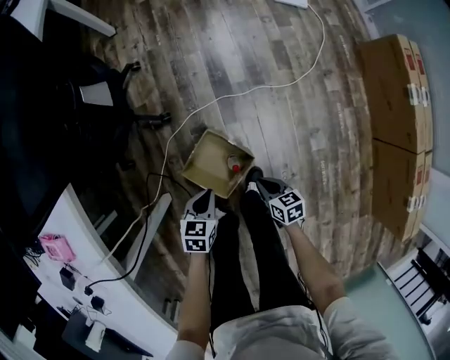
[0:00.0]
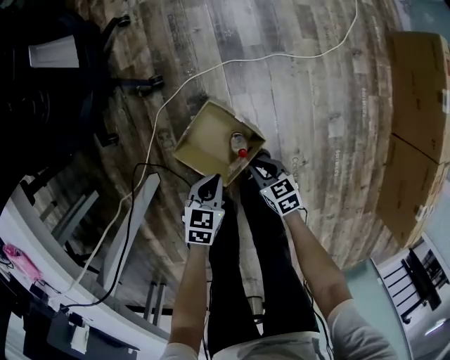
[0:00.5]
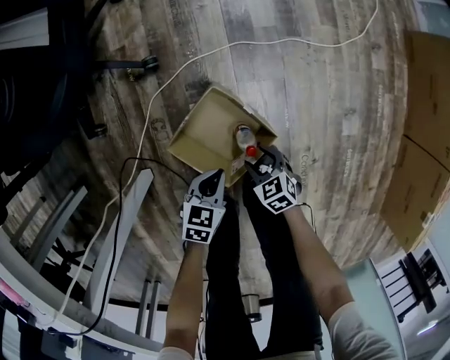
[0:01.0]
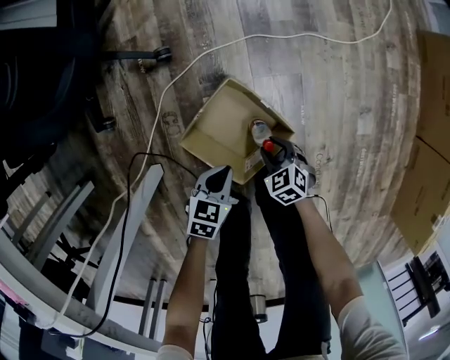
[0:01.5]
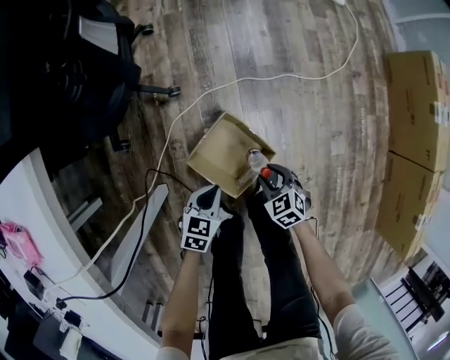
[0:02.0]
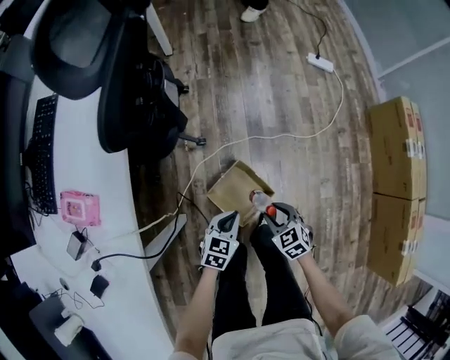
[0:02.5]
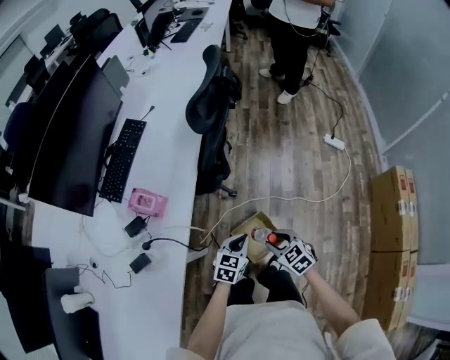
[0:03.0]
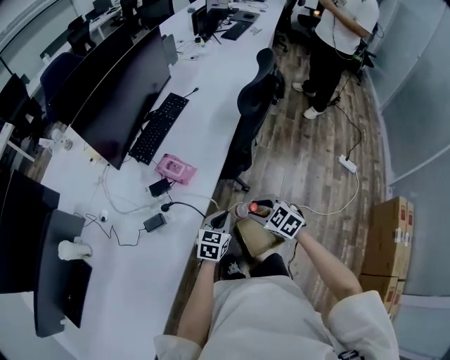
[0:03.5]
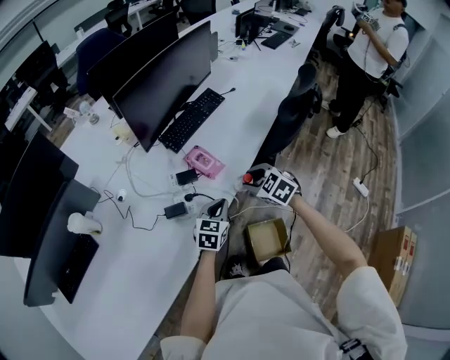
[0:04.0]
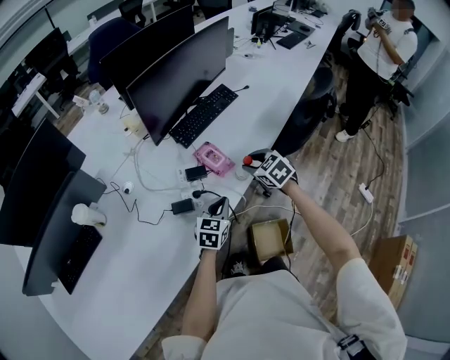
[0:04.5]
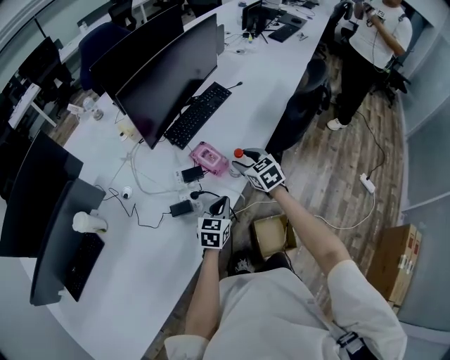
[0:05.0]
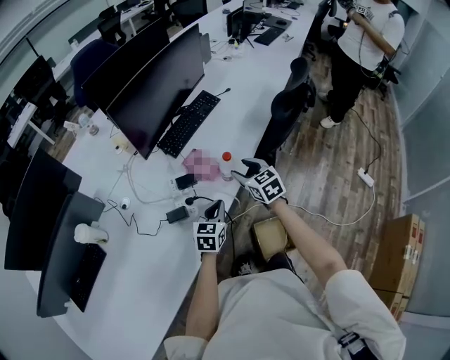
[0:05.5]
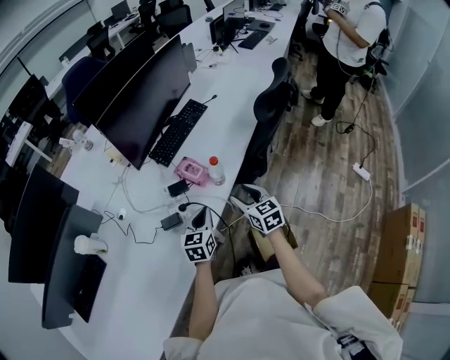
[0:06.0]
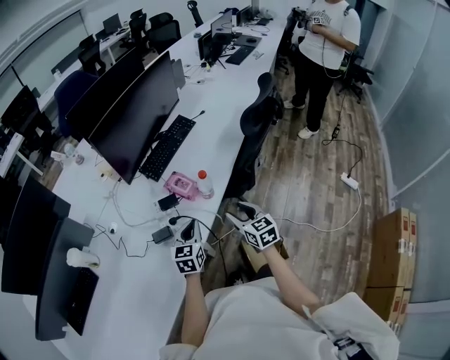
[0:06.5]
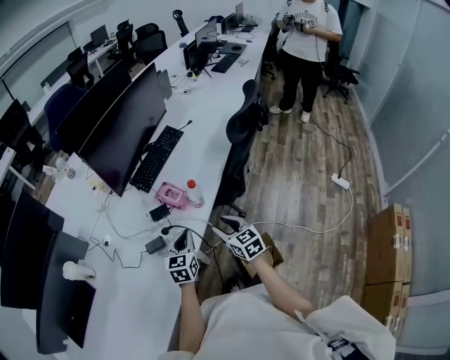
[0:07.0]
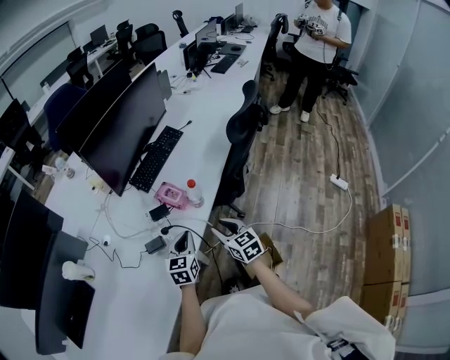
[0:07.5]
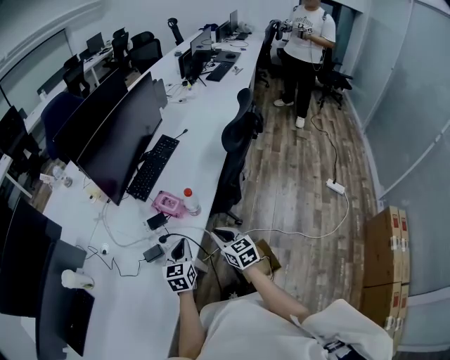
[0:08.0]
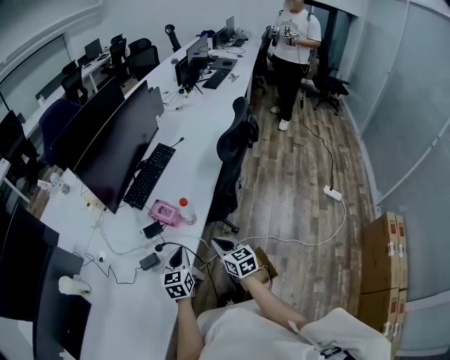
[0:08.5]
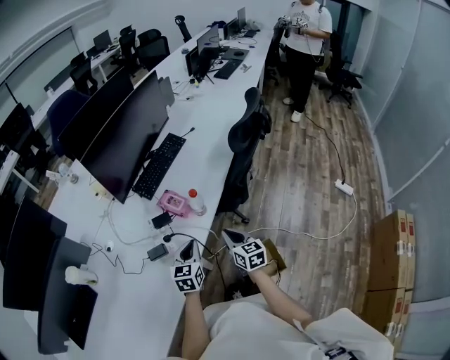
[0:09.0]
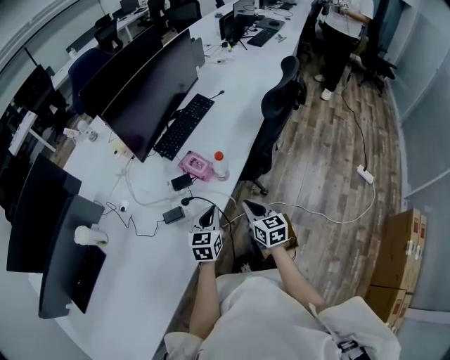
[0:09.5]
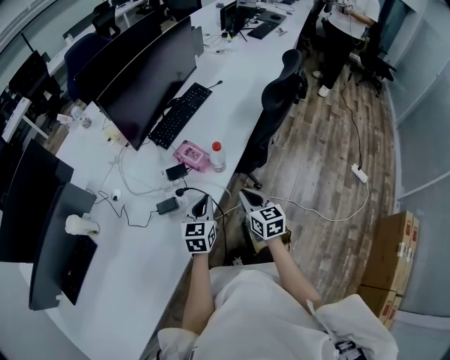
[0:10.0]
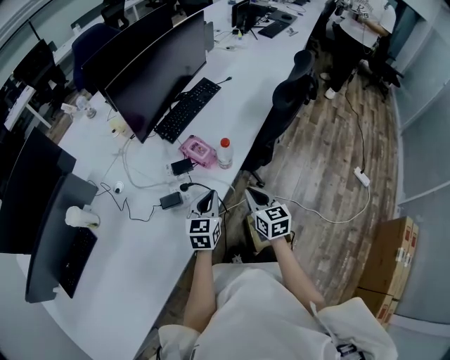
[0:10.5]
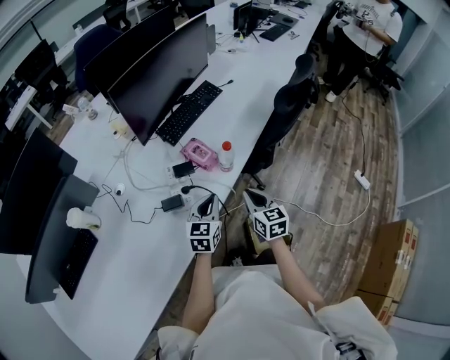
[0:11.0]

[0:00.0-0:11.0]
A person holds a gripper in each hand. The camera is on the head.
0:00.0 to 0:02.0: The left gripper travels downward, to the left and backward by about 15 cm; the right gripper shifts approximately 15 cm downward and to the left, rotates around the line of its fingers by some 40 degrees, counterclockwise from behind, and opens up.
0:02.0 to 0:03.5: The two grippers go roughly 50 cm upward. The right gripper changes its angle by about 50 degrees, while the left gripper rotates roughly 40 degrees.
0:03.5 to 0:05.5: The right gripper shifts roughly 20 cm forward and to the left, and changes its angle by about 20 degrees. The left gripper moves to the left and forward, approximately 15 cm.
0:05.5 to 0:07.5: The right gripper heads backward, covering about 15 cm.
0:07.5 to 0:09.0: The right gripper closes its fingers.
0:09.0 to 0:11.0: The grippers move only a little.

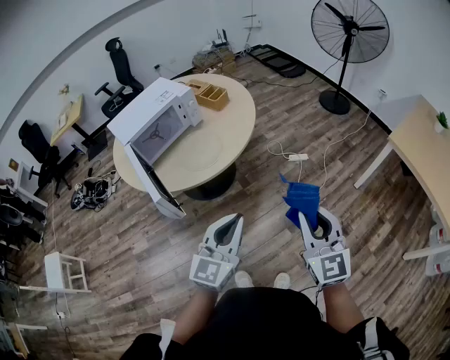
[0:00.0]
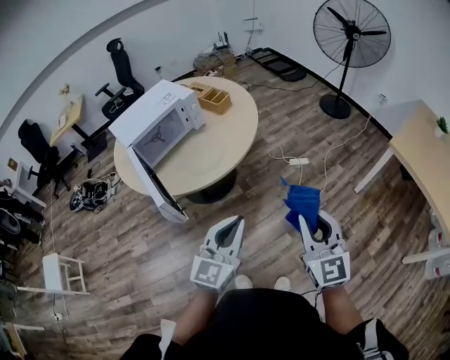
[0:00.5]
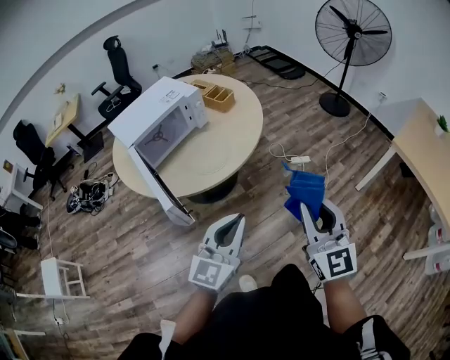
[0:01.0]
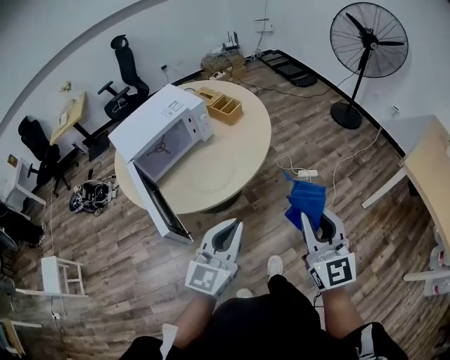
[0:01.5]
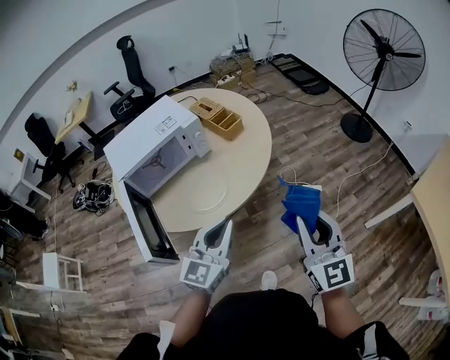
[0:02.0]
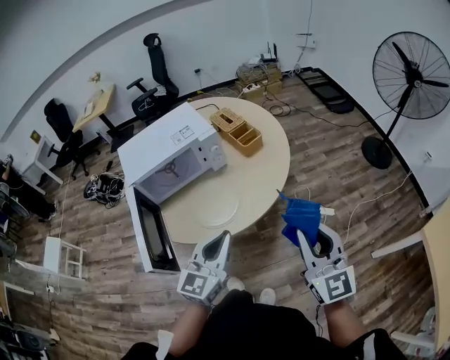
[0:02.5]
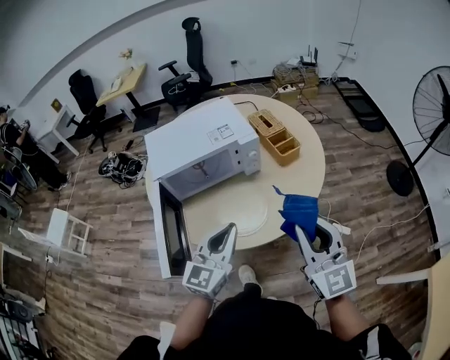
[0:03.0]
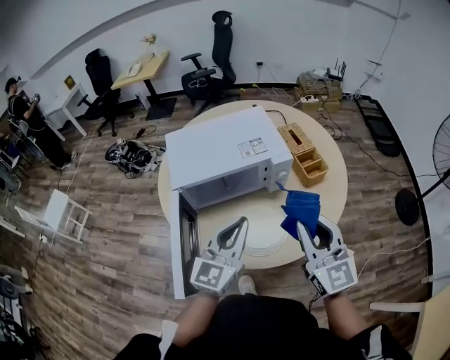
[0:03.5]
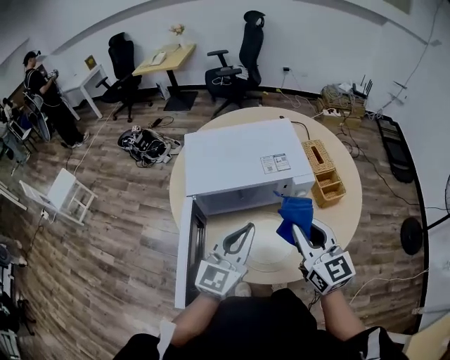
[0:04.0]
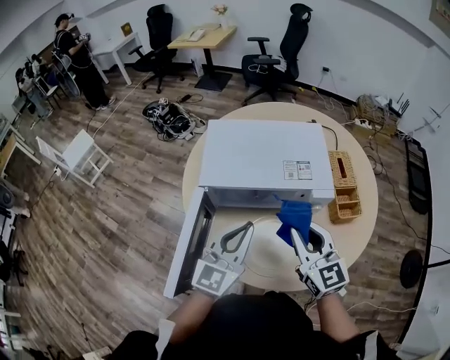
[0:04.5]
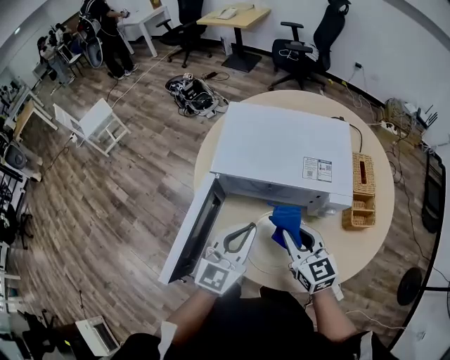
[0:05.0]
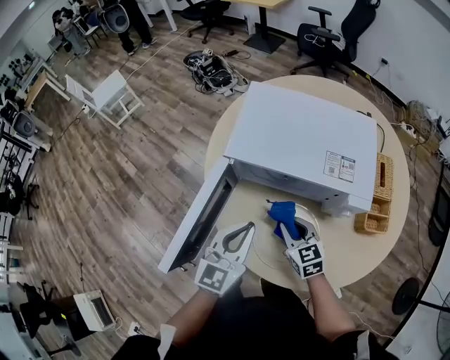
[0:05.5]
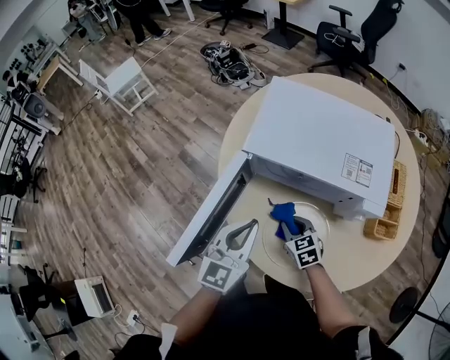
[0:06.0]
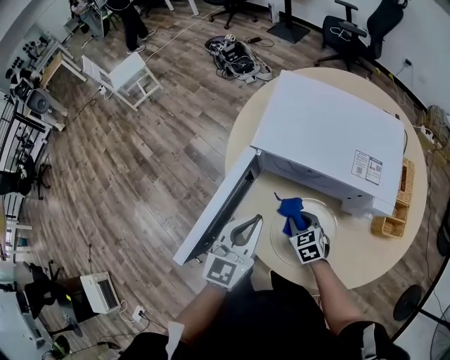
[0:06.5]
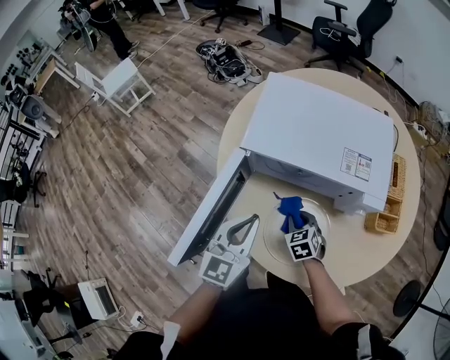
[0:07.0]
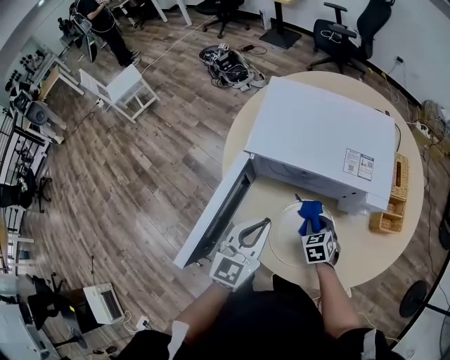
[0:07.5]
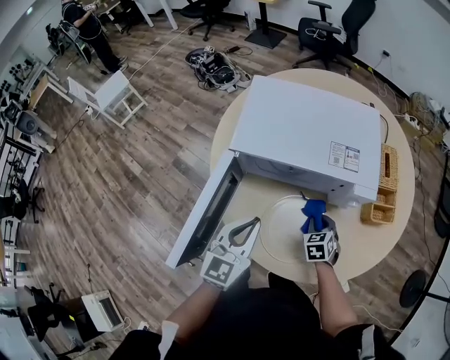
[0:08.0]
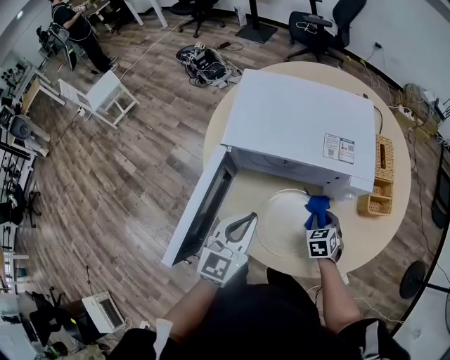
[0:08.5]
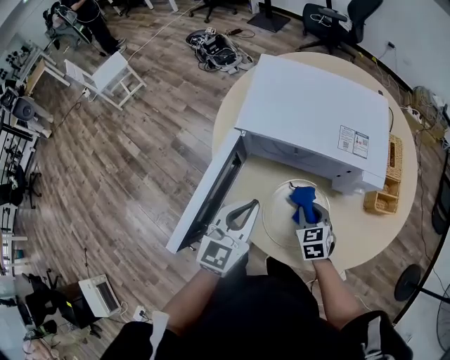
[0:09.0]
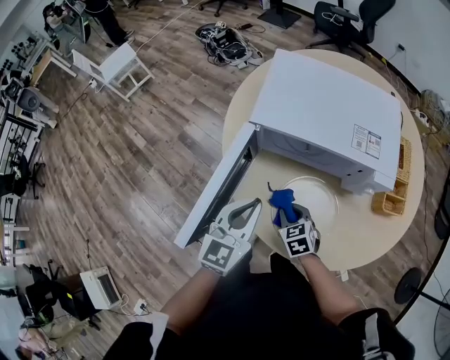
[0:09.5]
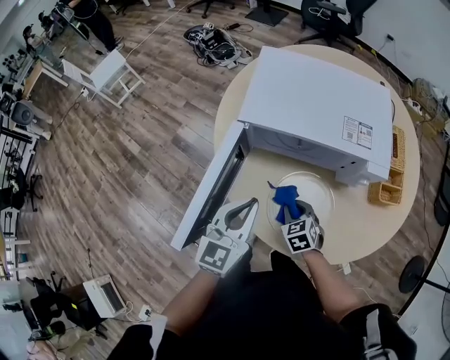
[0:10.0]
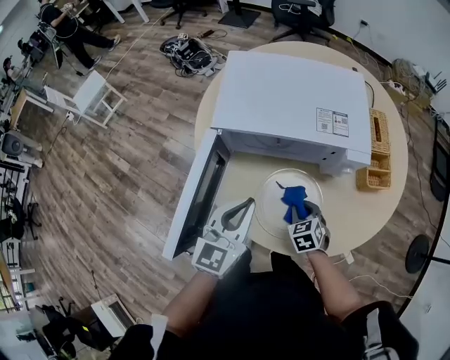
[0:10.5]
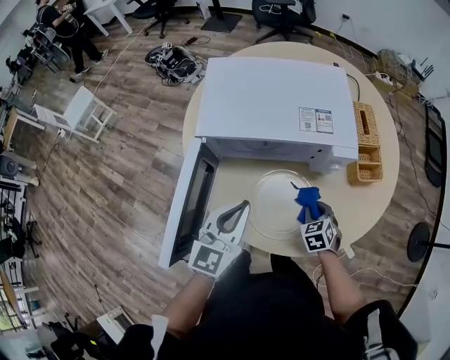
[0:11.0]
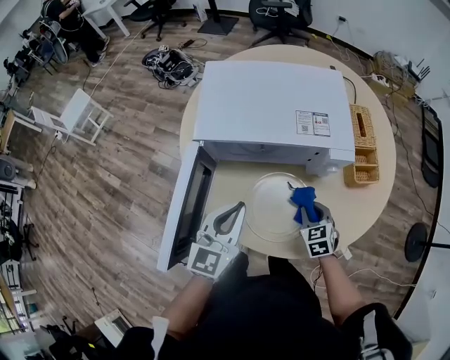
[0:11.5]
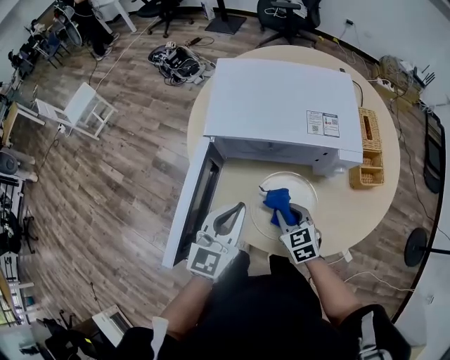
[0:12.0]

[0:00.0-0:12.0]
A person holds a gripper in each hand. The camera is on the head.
0:00.0 to 0:02.0: Both grippers travel together forward, some 25 cm.
0:02.0 to 0:04.0: The right gripper moves approximately 40 cm, and changes its angle by roughly 40 degrees; the left gripper ends up roughly 30 cm from where it was, and rotates some 30 degrees.
0:04.0 to 0:06.0: The right gripper travels downward by some 30 cm, and points its fingers roughly 40 degrees further downward; the left gripper moves downward, roughly 10 cm, and changes its angle by approximately 30 degrees.
0:06.0 to 0:08.0: The right gripper changes place by about 15 cm, and turns by roughly 30 degrees.
0:08.0 to 0:10.0: The right gripper is displaced to the left and backward by roughly 15 cm.
0:10.0 to 0:12.0: The right gripper moves upward, roughly 5 cm, and reaches roughly 15 cm to the right, then returns.

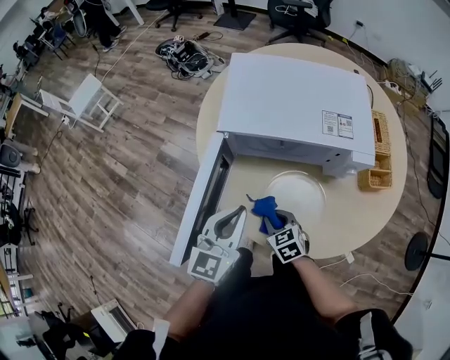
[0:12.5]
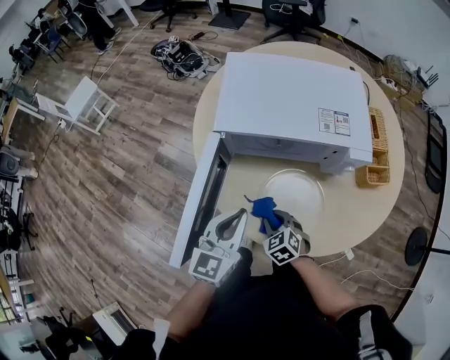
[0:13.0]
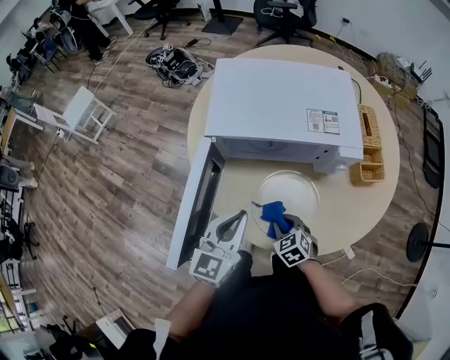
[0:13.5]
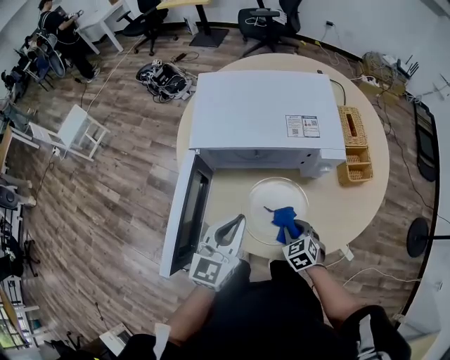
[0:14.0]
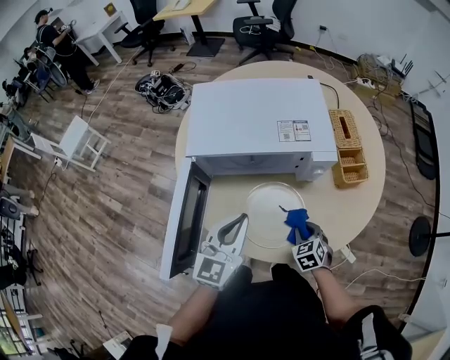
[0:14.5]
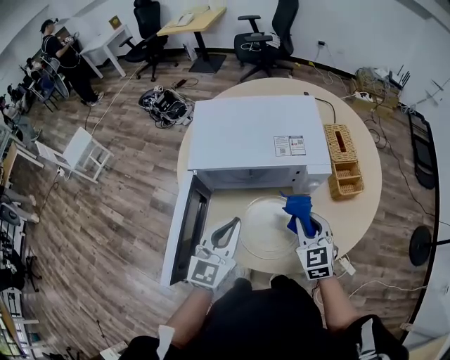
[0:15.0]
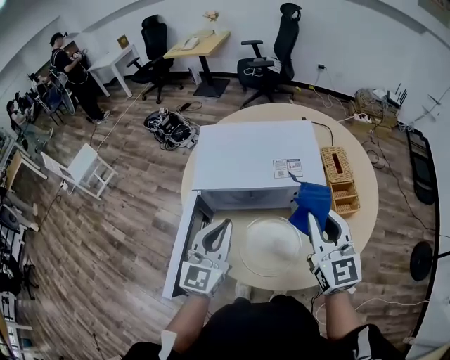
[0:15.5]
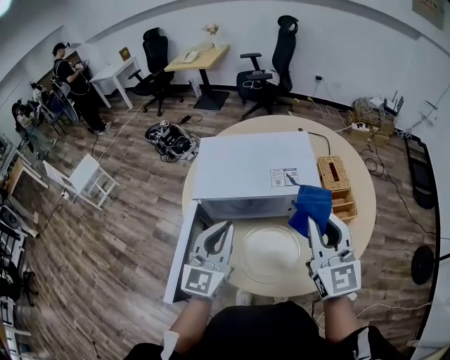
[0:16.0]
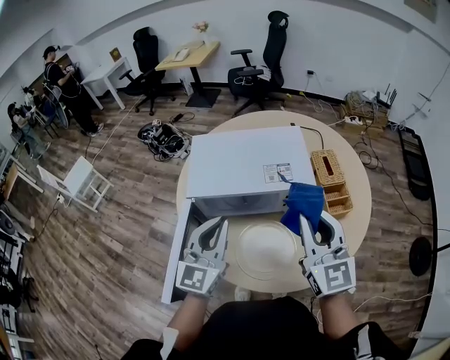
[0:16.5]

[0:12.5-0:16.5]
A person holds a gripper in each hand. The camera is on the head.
0:12.5 to 0:14.5: The right gripper travels to the right by approximately 20 cm, and changes its angle by approximately 20 degrees; the left gripper is displaced to the right by about 10 cm.
0:14.5 to 0:16.5: The right gripper heads upward, covering some 40 cm, and points its fingers some 60 degrees further upward. Meanwhile the left gripper shifts some 10 cm upward.
